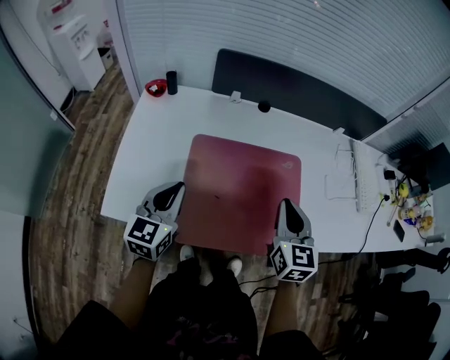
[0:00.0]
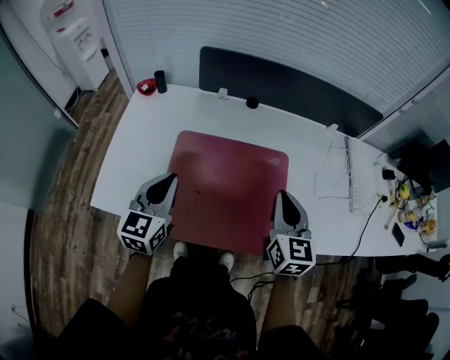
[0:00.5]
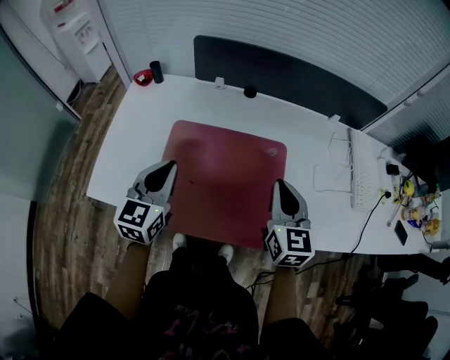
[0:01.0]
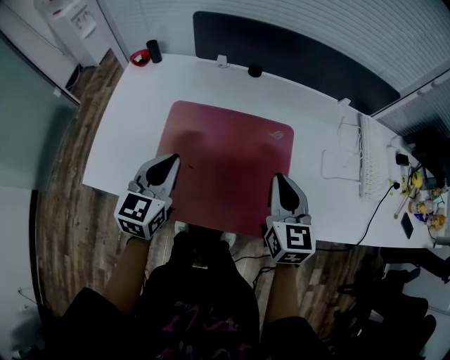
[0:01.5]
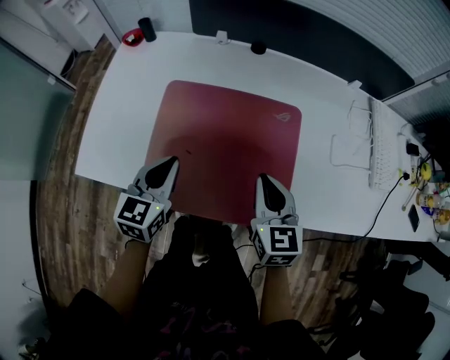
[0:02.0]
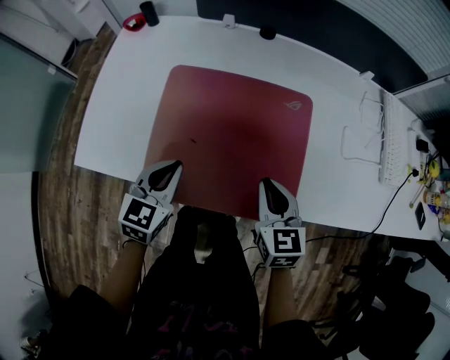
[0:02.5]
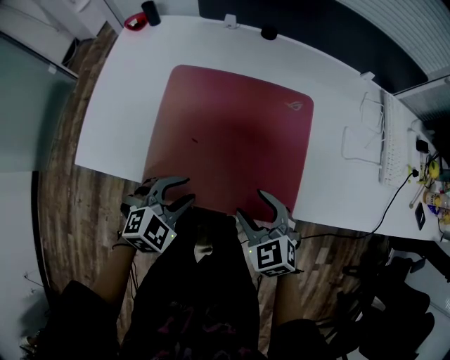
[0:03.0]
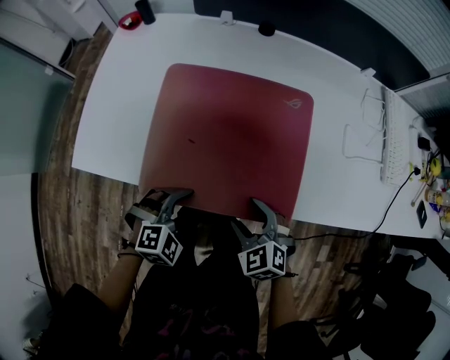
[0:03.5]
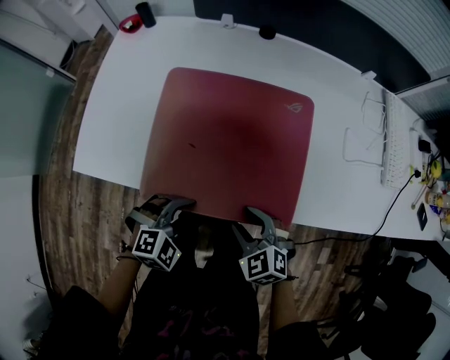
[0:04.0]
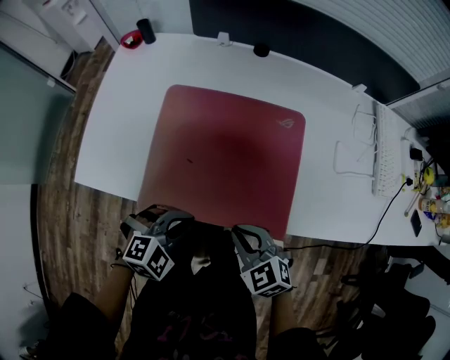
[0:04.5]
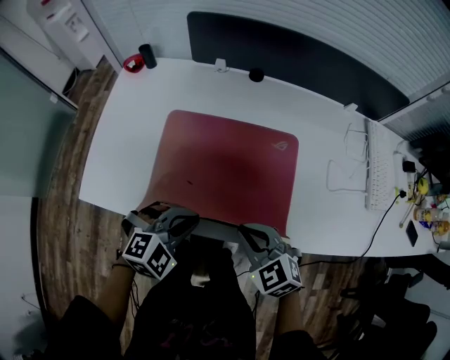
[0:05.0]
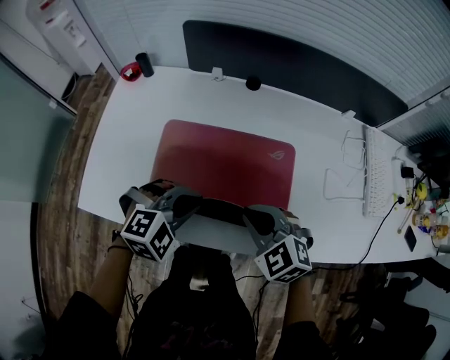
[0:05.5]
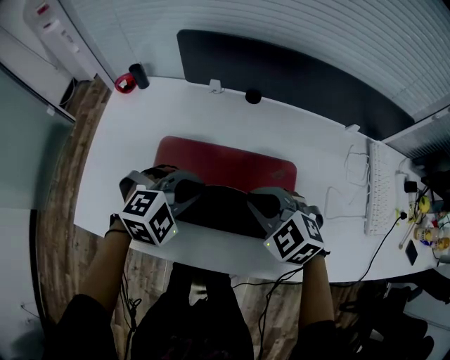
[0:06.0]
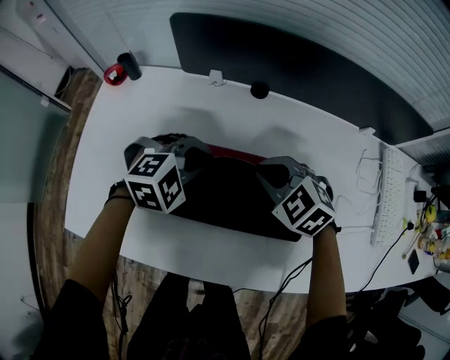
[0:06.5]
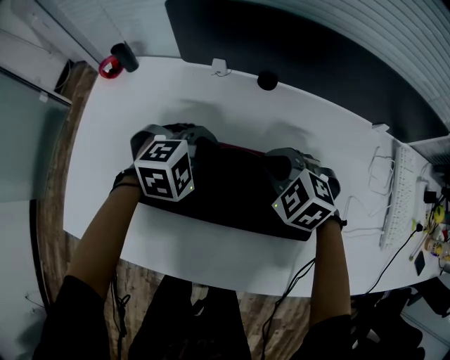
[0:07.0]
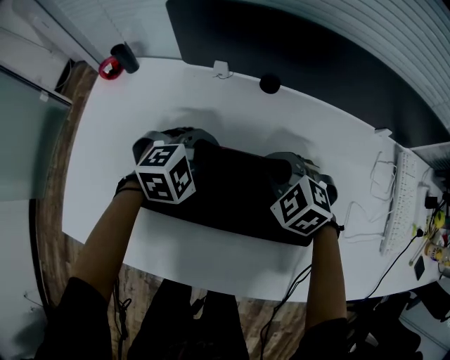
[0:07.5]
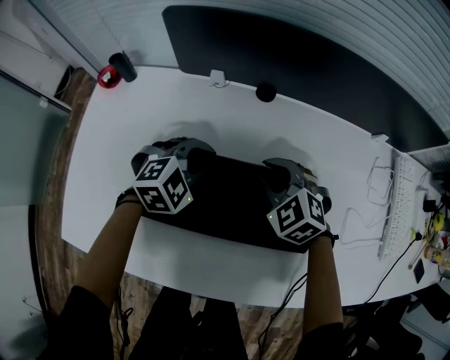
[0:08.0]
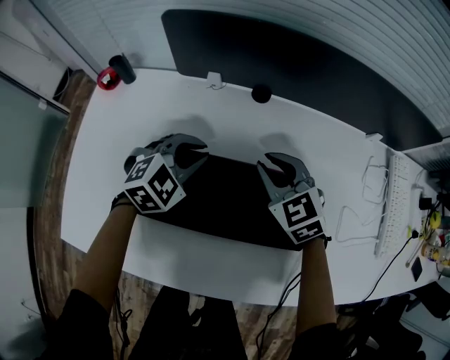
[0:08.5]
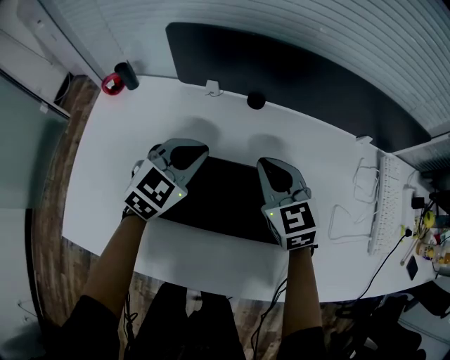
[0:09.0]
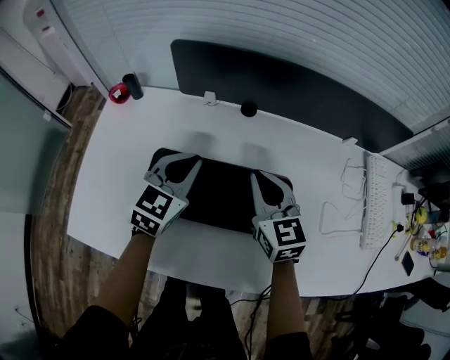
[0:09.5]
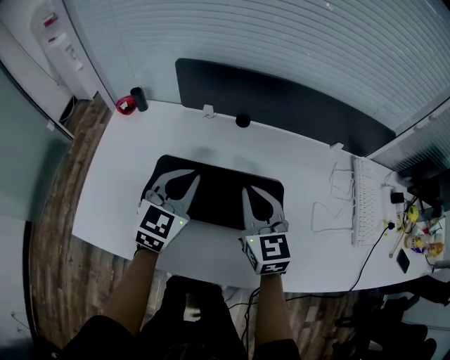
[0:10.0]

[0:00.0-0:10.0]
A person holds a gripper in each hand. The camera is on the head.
0:00.0 to 0:02.0: The right gripper travels downward by about 10 cm. The left gripper goes roughly 15 cm to the right and downward.
0:02.0 to 0:04.0: The right gripper moves backward and downward, roughly 15 cm, swivels some 50 degrees, and opens its fingers, while the left gripper shifts some 20 cm backward, downward and to the right, changes its angle by roughly 60 degrees, and opens its fingers.
0:04.0 to 0:06.0: The grippers both shift forward and upward by about 25 cm. The right gripper closes its fingers. Meanwhile the left gripper closes up.
0:06.0 to 0:08.0: The grippers both shift forward and downward by about 20 cm.
0:08.0 to 0:10.0: Both grippers travel together upward and backward, about 20 cm. The left gripper tips its fingers upward by roughly 30 degrees. Meanwhile the right gripper tilts its fingers approximately 30 degrees upward.

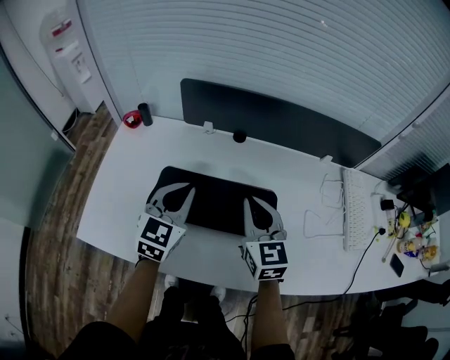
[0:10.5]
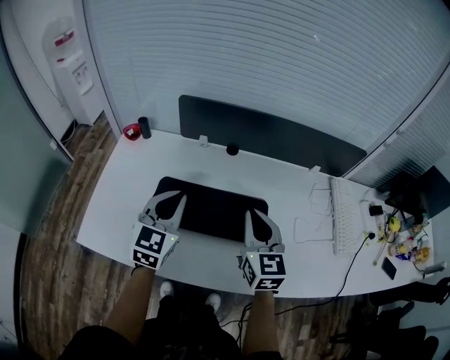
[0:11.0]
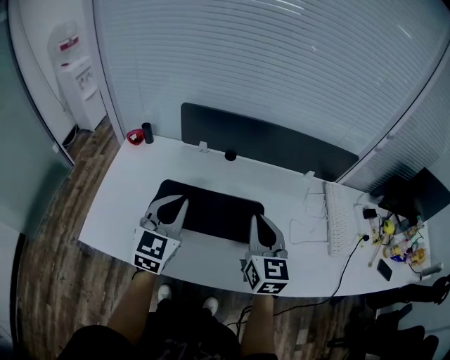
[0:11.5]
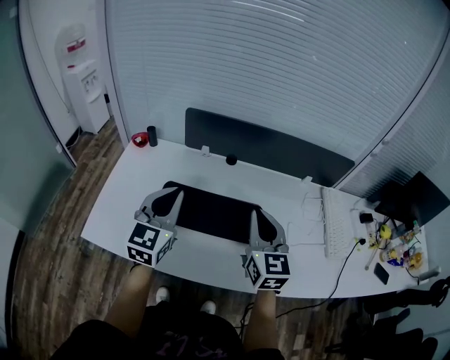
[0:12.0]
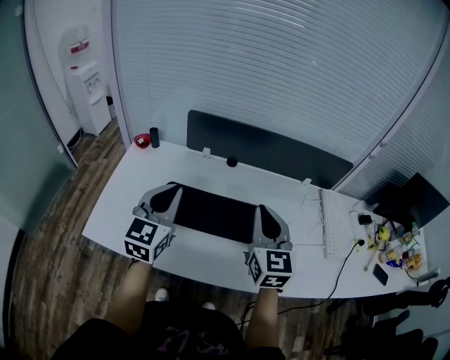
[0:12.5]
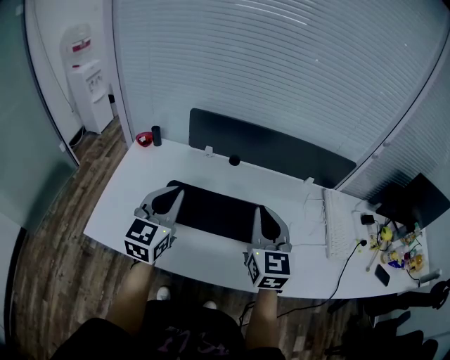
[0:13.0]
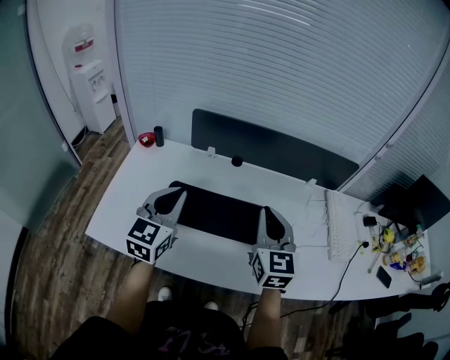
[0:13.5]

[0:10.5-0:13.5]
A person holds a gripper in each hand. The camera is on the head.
0:10.5 to 0:12.0: The grippers both shift upward and backward by about 10 cm.
0:12.0 to 0:13.5: The grippers stay close to where they were, moving slightly.

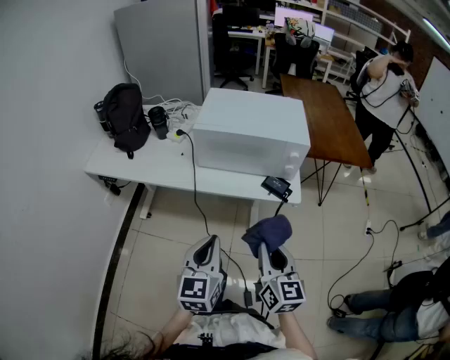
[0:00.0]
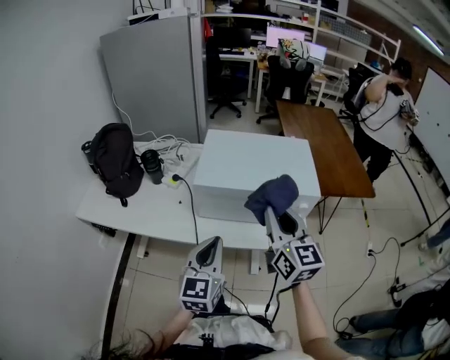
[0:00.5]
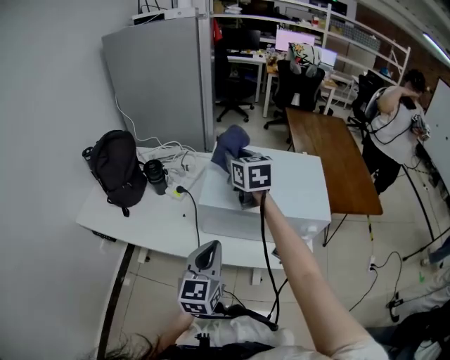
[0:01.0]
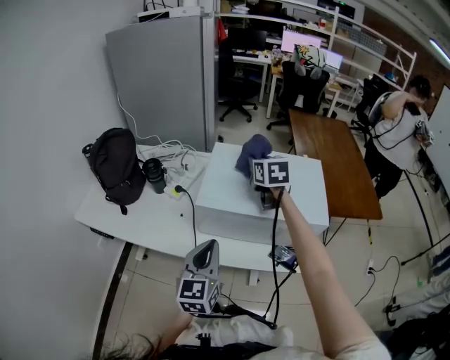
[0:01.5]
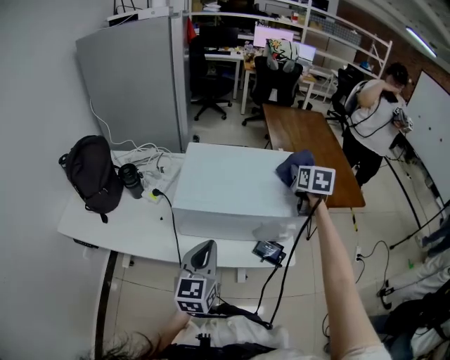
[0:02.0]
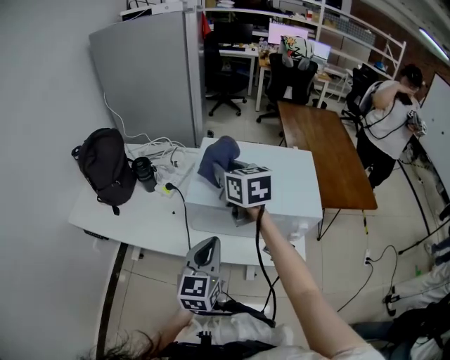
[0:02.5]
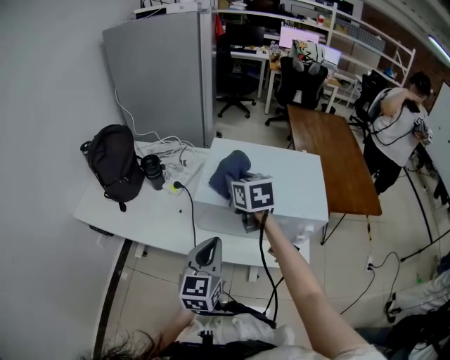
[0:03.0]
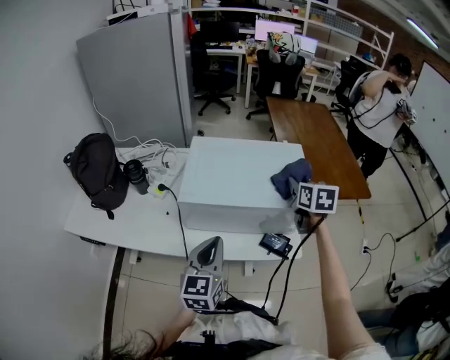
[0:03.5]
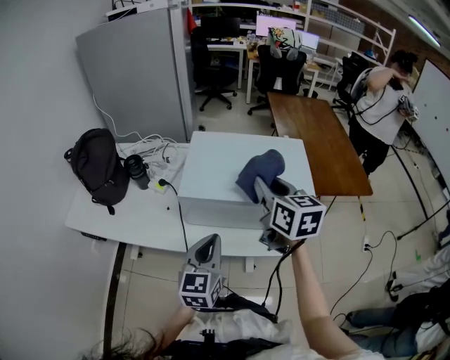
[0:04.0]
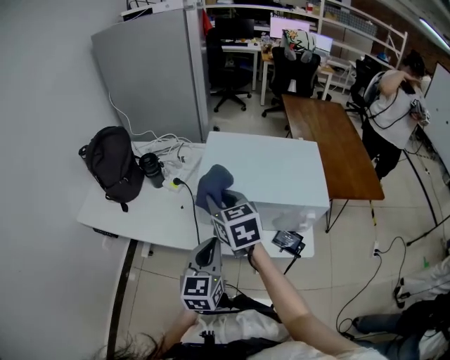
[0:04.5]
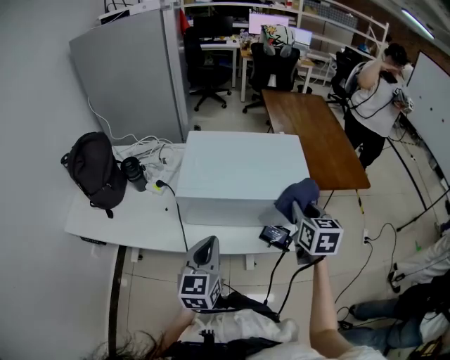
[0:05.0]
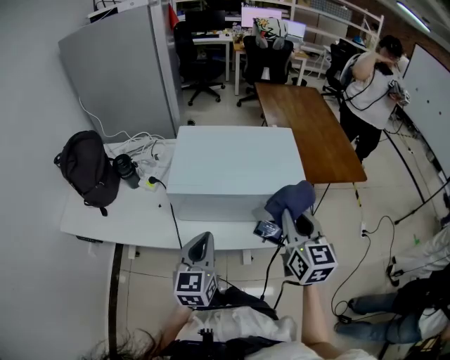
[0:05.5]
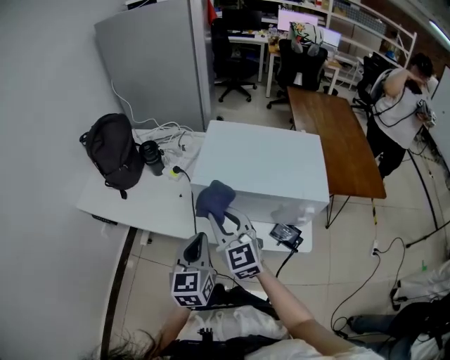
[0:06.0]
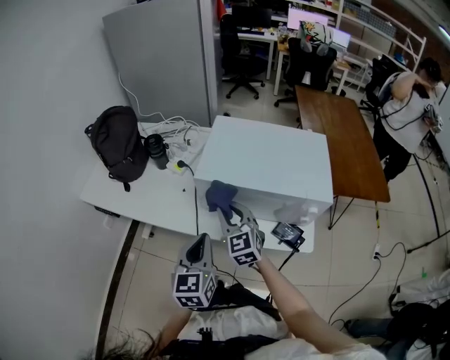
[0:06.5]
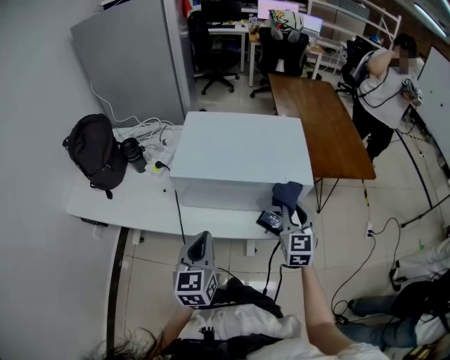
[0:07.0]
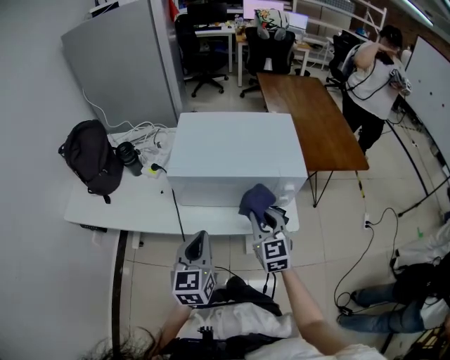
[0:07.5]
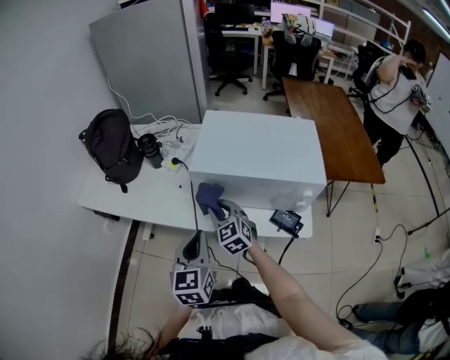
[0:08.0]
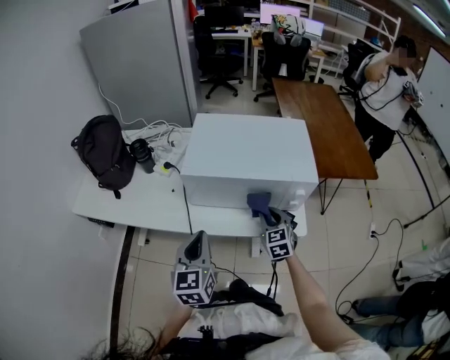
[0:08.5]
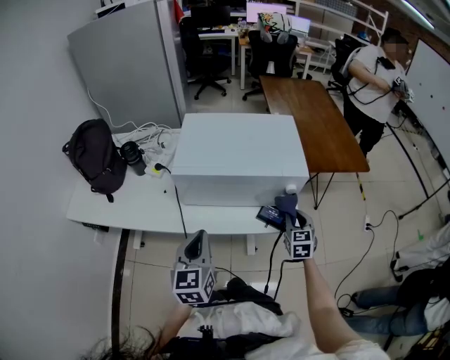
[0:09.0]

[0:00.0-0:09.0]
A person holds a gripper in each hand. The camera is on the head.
0:00.0 to 0:02.0: The right gripper moves forward, approximately 50 cm, and swivels some 30 degrees. Meanwhile the left gripper moves forward, approximately 25 cm.
0:02.0 to 0:04.5: The right gripper goes left and right, approximately 35 cm each way, reversing 2 times, and swivels roughly 30 degrees; the left gripper moves left and right over some 5 cm, changing direction 2 times.
0:04.5 to 0:07.0: The left gripper goes left and right, some 5 cm each way, reversing 2 times, while the right gripper goes left and right, about 30 cm each way, reversing 2 times, and turns by some 30 degrees.
0:07.0 to 0:09.0: The right gripper moves downward, some 10 cm, and moves roughly 30 cm to the left and comes back.

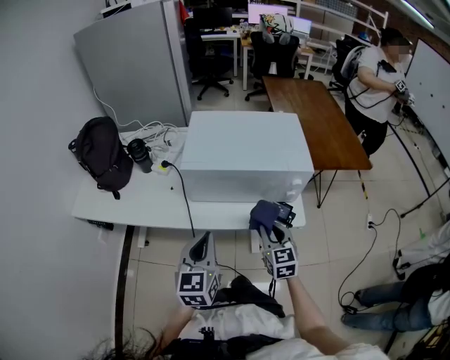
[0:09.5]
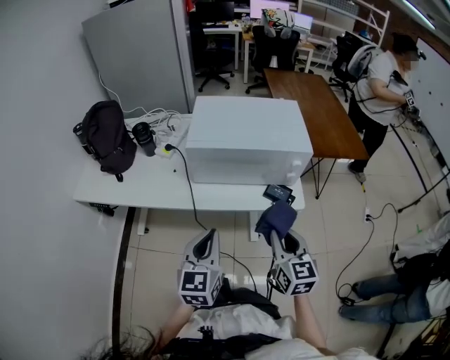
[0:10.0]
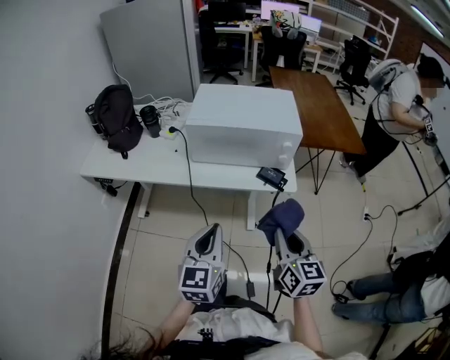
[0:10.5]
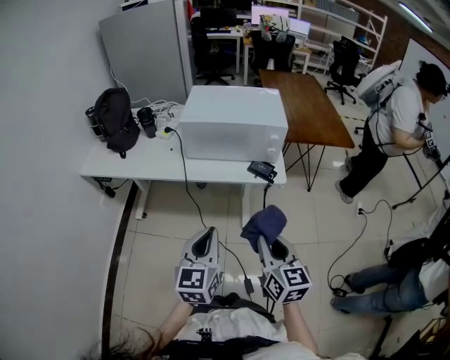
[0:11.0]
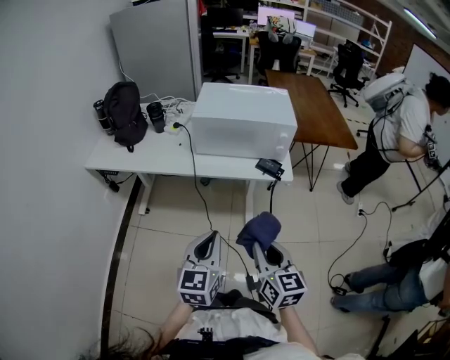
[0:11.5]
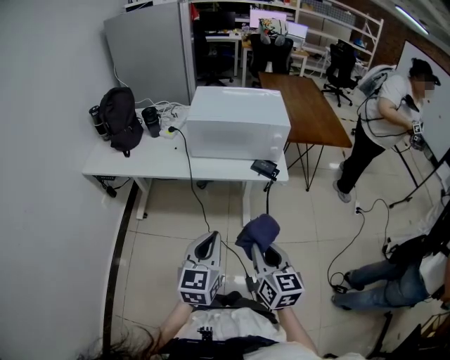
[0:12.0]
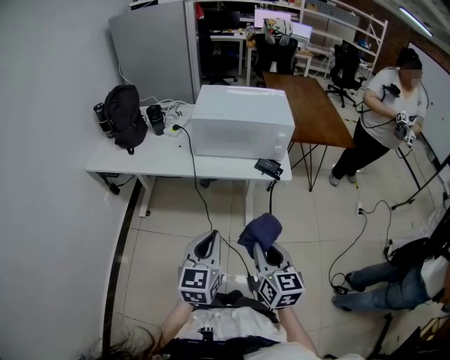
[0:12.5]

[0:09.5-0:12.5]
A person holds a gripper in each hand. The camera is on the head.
0:09.5 to 0:11.0: Both grippers travel together backward, some 25 cm.
0:11.0 to 0:12.5: The right gripper moves about 5 cm.

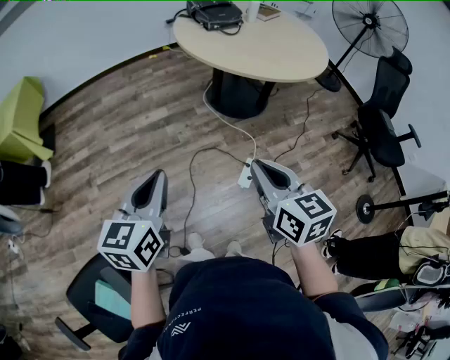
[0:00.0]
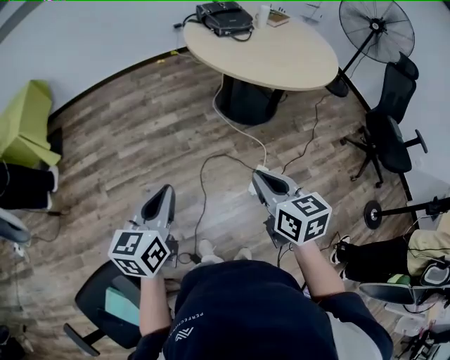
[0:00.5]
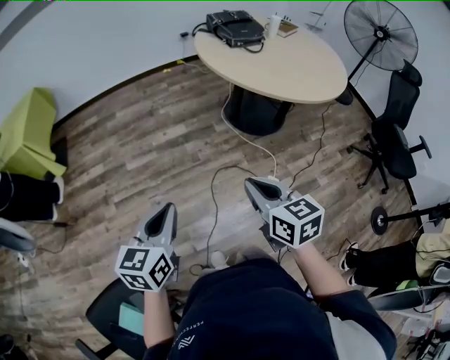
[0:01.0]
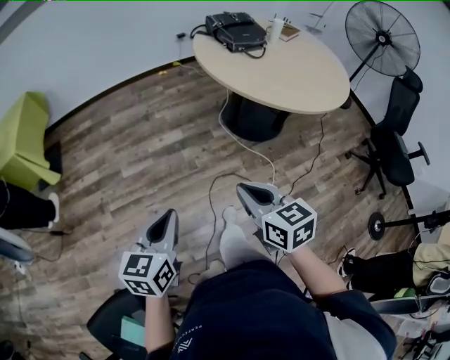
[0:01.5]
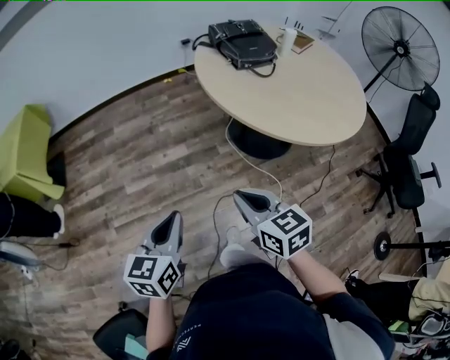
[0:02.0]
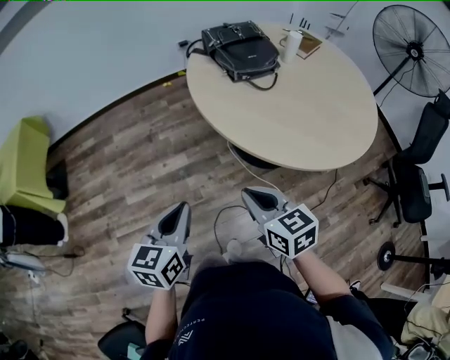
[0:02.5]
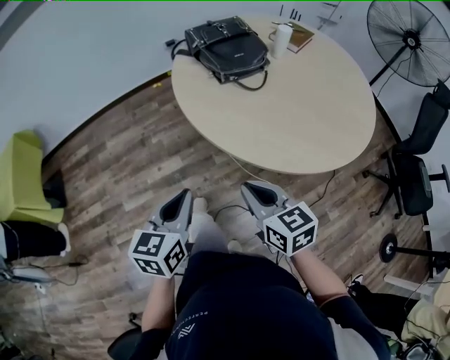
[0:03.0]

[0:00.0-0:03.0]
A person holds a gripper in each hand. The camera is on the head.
0:00.0 to 0:01.5: The two grippers go about 20 cm to the left, forward and downward.
0:01.5 to 0:03.0: The two grippers go some 35 cm forward and to the right.
